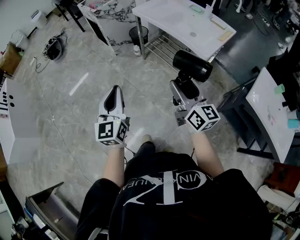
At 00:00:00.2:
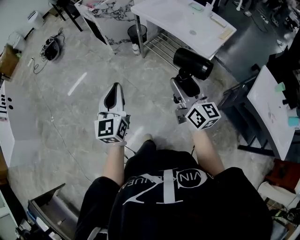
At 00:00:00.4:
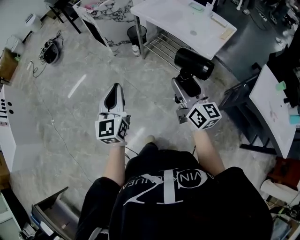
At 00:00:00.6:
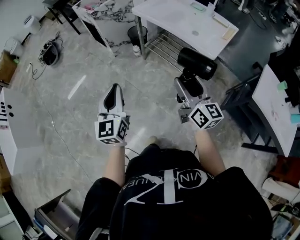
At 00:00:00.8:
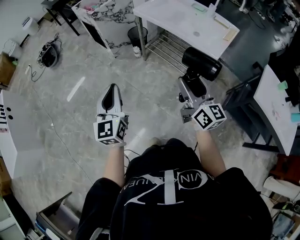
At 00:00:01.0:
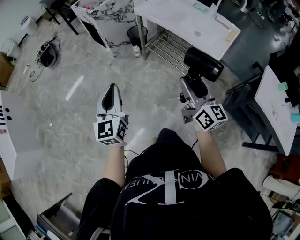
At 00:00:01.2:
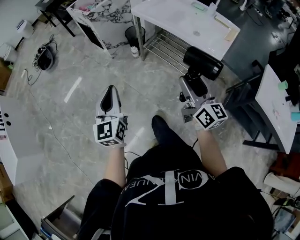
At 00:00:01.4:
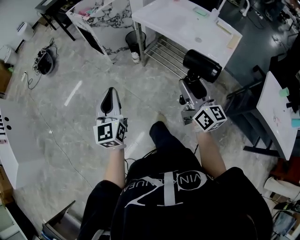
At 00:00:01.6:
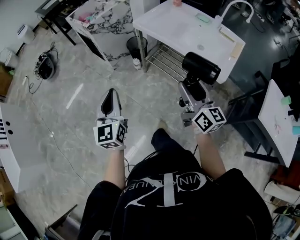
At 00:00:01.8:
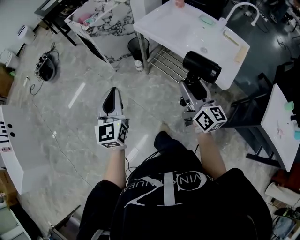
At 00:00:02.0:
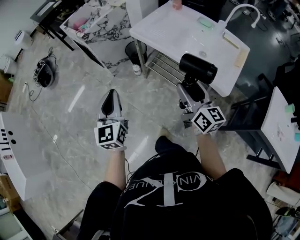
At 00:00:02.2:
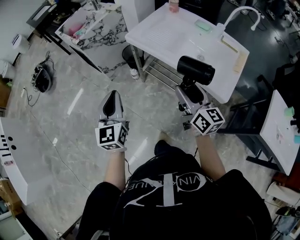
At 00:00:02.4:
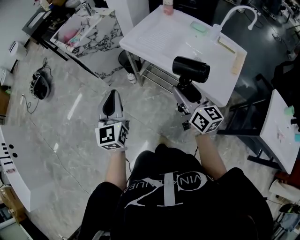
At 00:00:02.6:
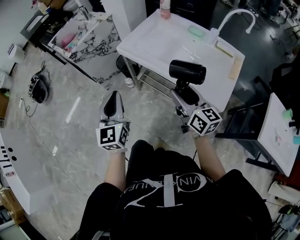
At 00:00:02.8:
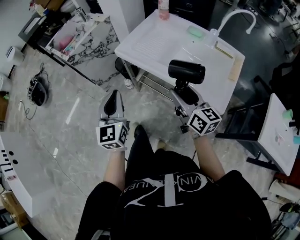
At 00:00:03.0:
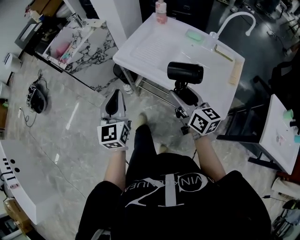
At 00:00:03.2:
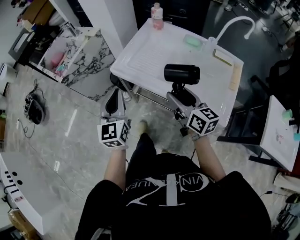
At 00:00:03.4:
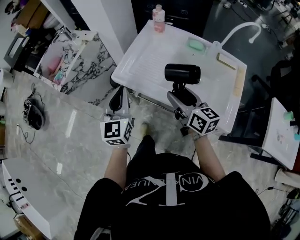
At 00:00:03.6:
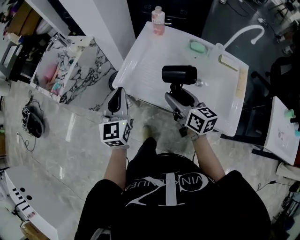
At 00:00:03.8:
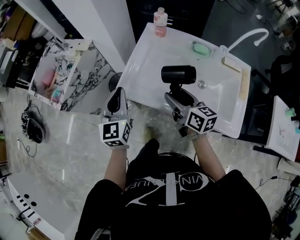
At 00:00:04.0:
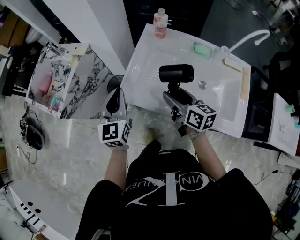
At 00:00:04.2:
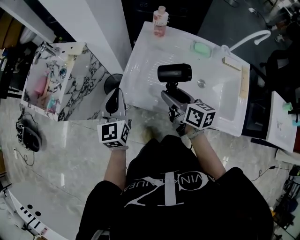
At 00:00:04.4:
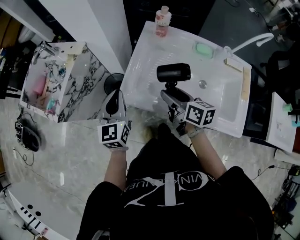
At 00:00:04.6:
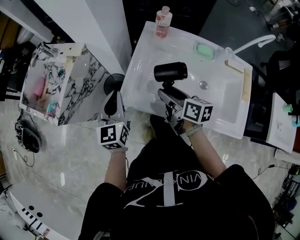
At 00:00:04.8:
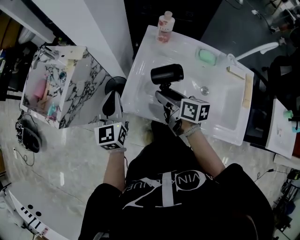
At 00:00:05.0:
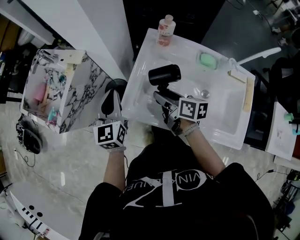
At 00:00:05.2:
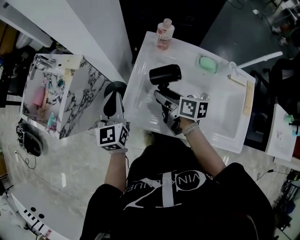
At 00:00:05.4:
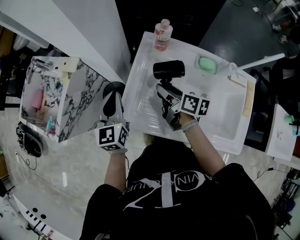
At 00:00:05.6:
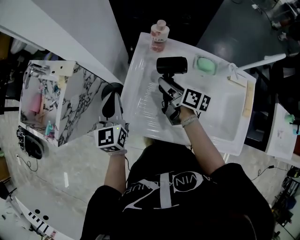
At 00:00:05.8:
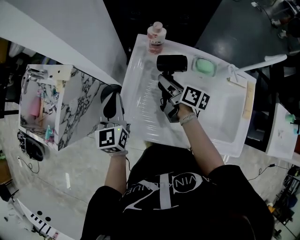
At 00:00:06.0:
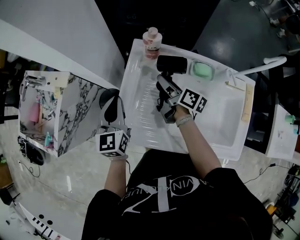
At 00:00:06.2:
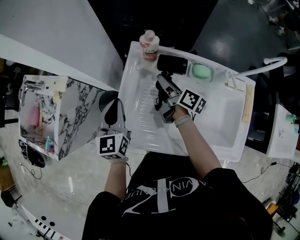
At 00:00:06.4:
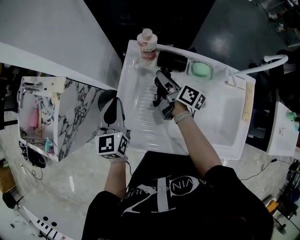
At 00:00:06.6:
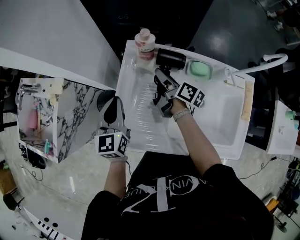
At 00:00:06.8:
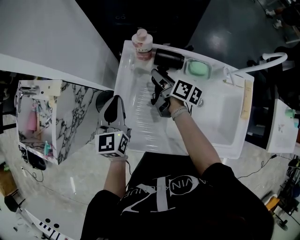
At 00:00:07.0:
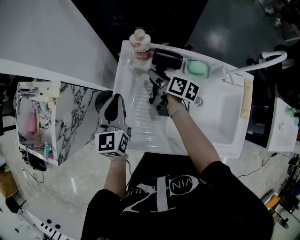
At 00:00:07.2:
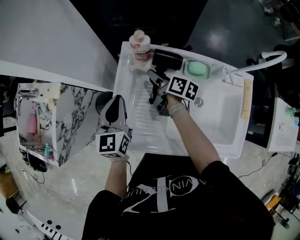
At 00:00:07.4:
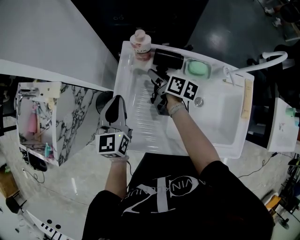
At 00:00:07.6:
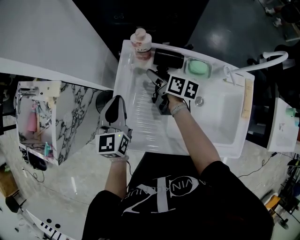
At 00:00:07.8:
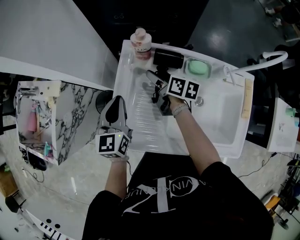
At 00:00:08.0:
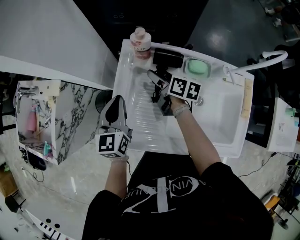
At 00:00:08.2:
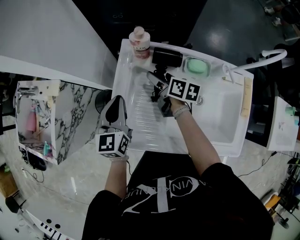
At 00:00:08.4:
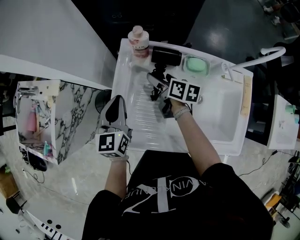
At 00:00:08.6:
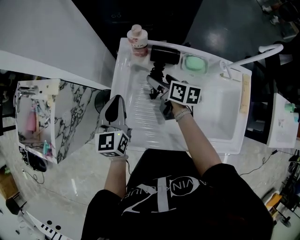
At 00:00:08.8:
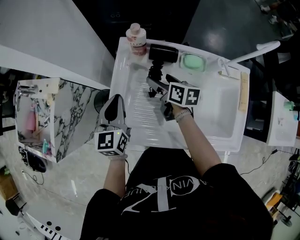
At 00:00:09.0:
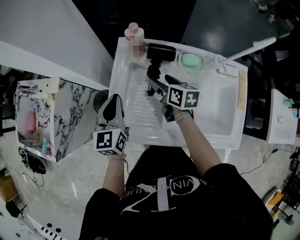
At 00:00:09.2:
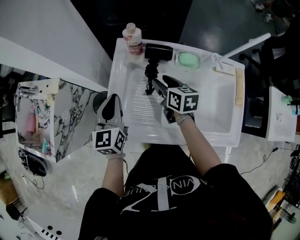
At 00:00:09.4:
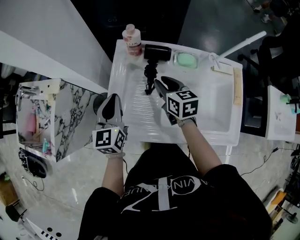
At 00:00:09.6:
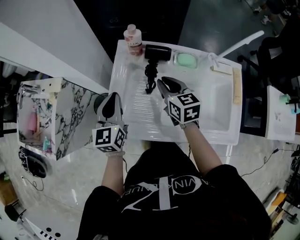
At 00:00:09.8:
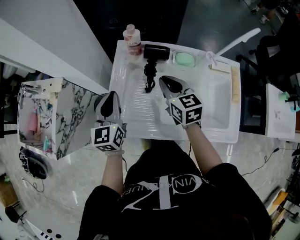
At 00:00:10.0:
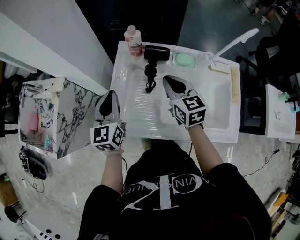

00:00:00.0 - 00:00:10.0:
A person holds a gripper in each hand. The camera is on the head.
00:00:00.0 - 00:00:01.4: The left gripper goes roughly 20 cm forward and to the left, while the right gripper moves forward, some 15 cm.
00:00:01.4 - 00:00:02.8: The right gripper moves forward, about 25 cm. Meanwhile the left gripper shifts approximately 35 cm forward and to the right.
00:00:02.8 - 00:00:04.2: The grippers both shift forward by about 30 cm. The right gripper rotates approximately 20 degrees.
00:00:04.2 - 00:00:05.8: The left gripper is displaced forward and to the right by roughly 15 cm; the right gripper is displaced forward by approximately 20 cm, and swivels approximately 20 degrees.
00:00:05.8 - 00:00:07.2: The left gripper goes approximately 5 cm to the right. Meanwhile the right gripper moves forward, approximately 5 cm.
00:00:07.2 - 00:00:08.6: The grippers make only small movements.
00:00:08.6 - 00:00:10.0: The left gripper shifts by roughly 5 cm, while the right gripper goes roughly 15 cm upward and backward, rotates about 40 degrees, and closes its fingers.

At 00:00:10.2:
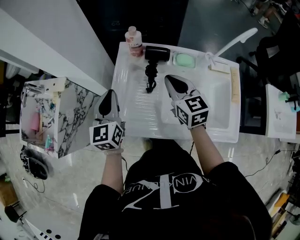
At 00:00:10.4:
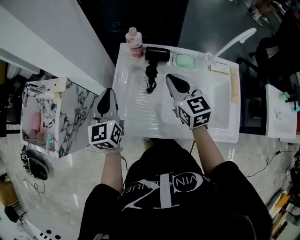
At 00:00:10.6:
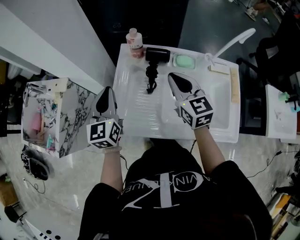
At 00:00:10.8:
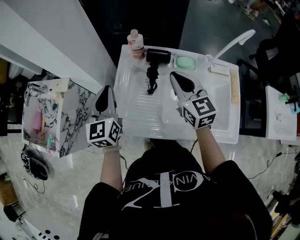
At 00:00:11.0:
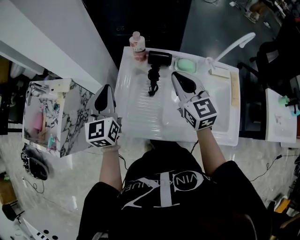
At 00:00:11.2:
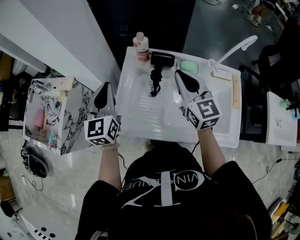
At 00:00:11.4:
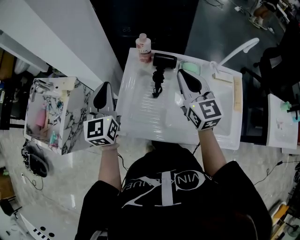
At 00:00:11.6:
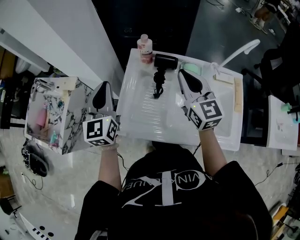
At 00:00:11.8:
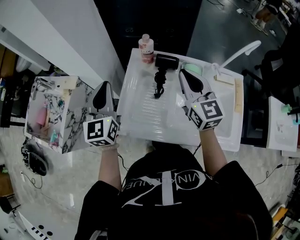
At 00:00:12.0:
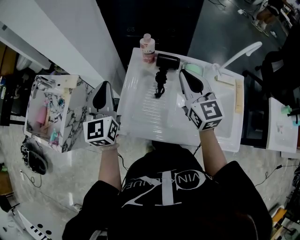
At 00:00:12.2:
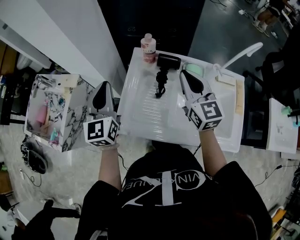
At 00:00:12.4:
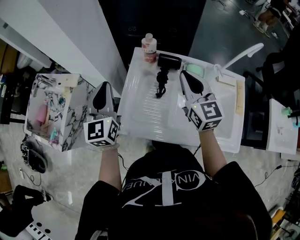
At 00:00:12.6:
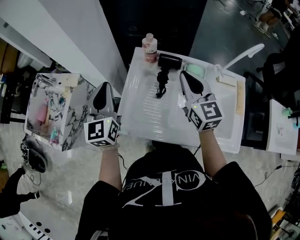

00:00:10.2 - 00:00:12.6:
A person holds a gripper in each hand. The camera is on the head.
00:00:10.2 - 00:00:11.4: Both grippers travel together upward, roughly 10 cm.
00:00:11.4 - 00:00:12.6: The grippers stay close to where they were, moving slightly.

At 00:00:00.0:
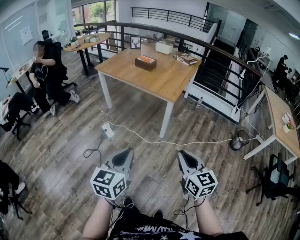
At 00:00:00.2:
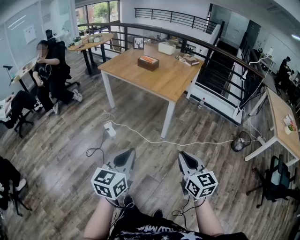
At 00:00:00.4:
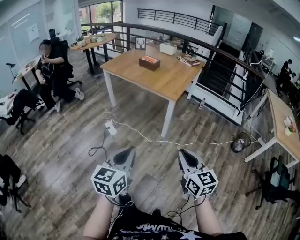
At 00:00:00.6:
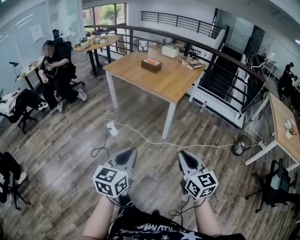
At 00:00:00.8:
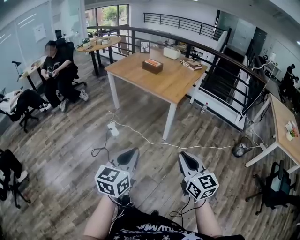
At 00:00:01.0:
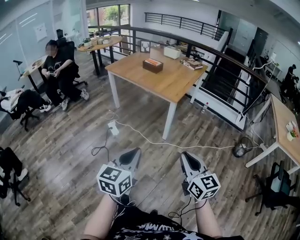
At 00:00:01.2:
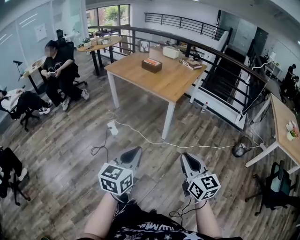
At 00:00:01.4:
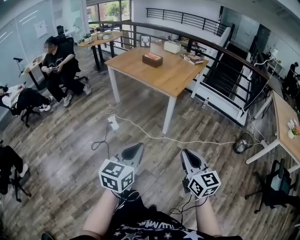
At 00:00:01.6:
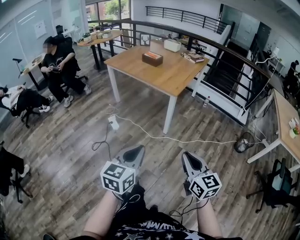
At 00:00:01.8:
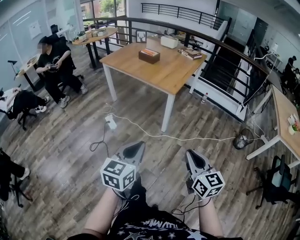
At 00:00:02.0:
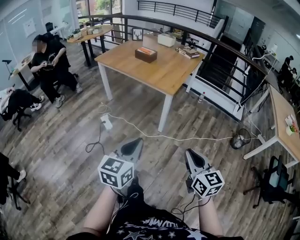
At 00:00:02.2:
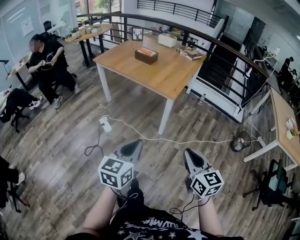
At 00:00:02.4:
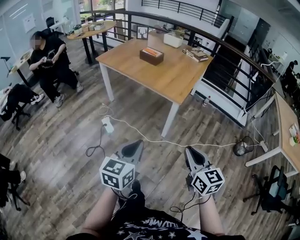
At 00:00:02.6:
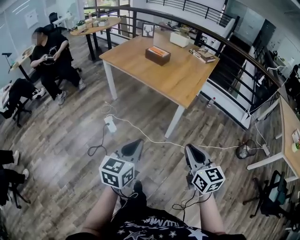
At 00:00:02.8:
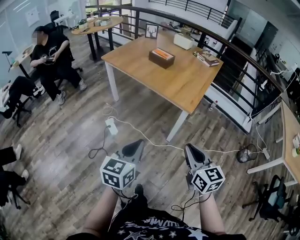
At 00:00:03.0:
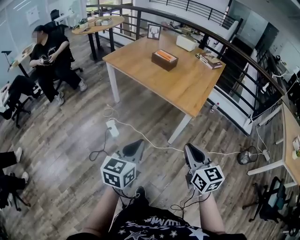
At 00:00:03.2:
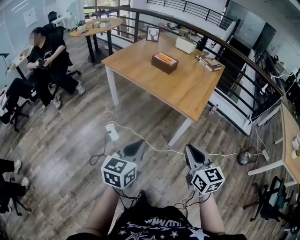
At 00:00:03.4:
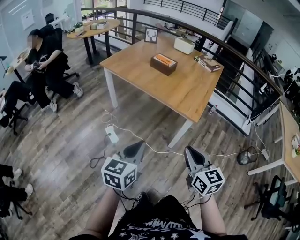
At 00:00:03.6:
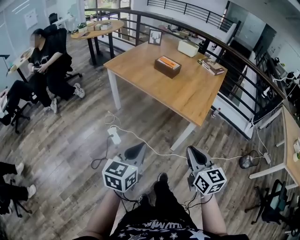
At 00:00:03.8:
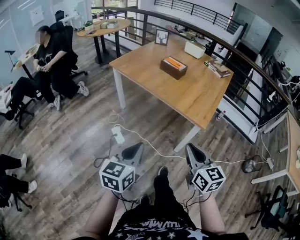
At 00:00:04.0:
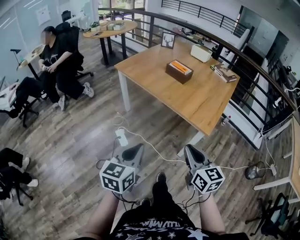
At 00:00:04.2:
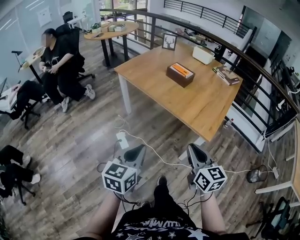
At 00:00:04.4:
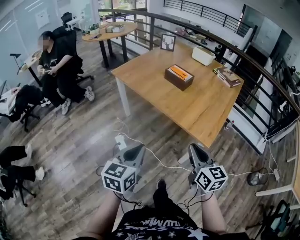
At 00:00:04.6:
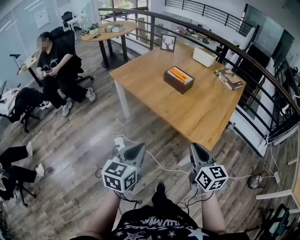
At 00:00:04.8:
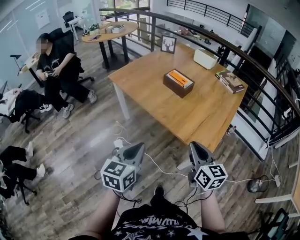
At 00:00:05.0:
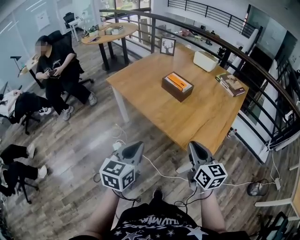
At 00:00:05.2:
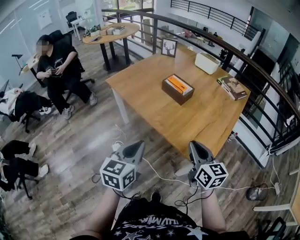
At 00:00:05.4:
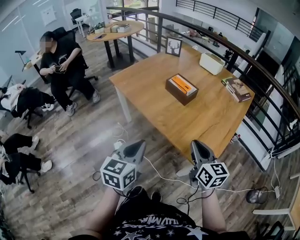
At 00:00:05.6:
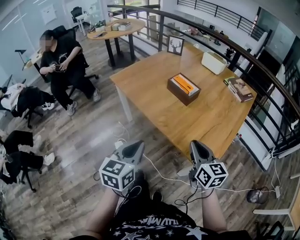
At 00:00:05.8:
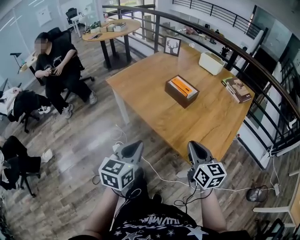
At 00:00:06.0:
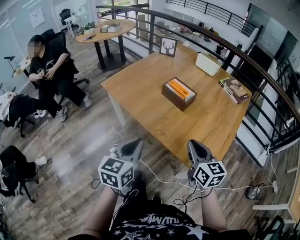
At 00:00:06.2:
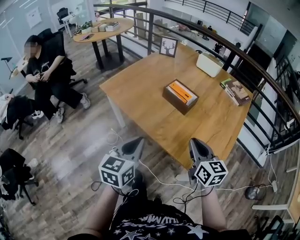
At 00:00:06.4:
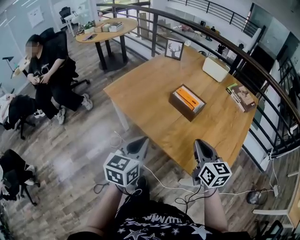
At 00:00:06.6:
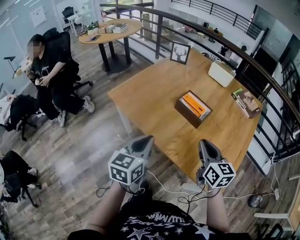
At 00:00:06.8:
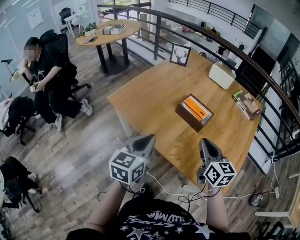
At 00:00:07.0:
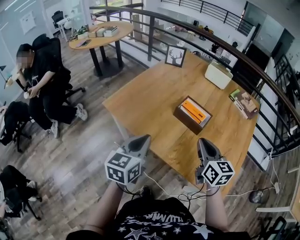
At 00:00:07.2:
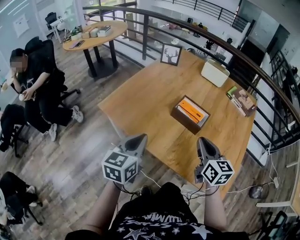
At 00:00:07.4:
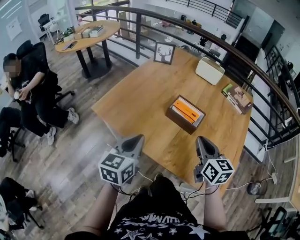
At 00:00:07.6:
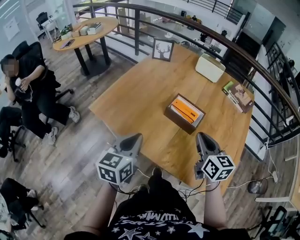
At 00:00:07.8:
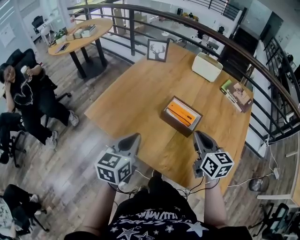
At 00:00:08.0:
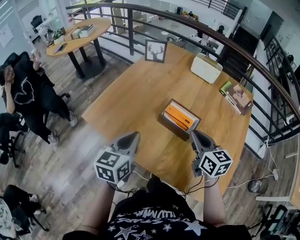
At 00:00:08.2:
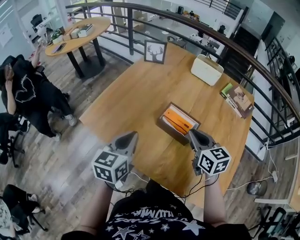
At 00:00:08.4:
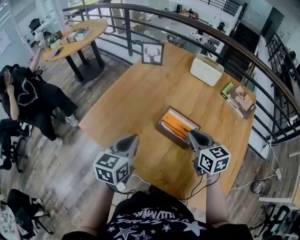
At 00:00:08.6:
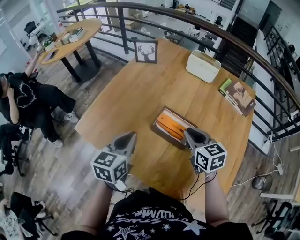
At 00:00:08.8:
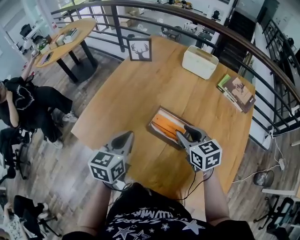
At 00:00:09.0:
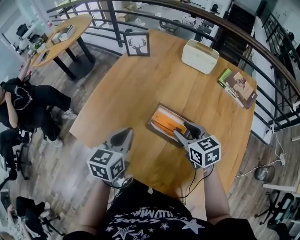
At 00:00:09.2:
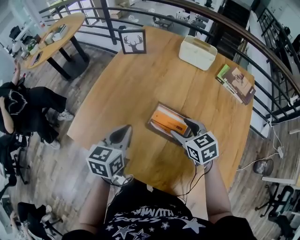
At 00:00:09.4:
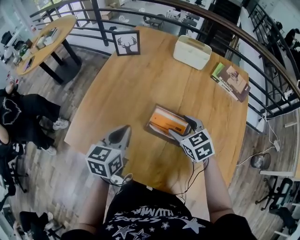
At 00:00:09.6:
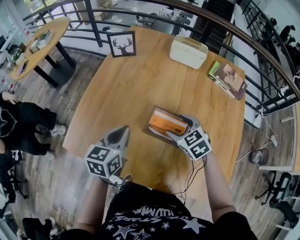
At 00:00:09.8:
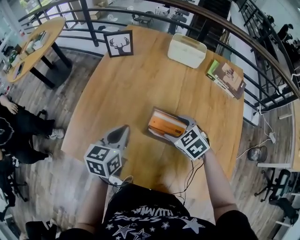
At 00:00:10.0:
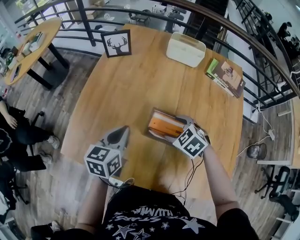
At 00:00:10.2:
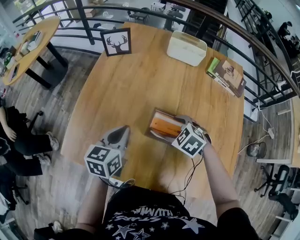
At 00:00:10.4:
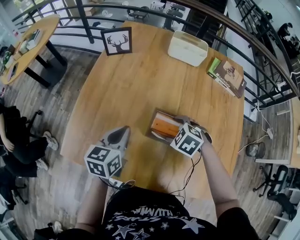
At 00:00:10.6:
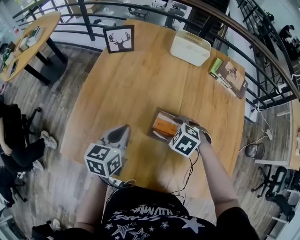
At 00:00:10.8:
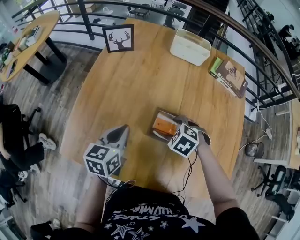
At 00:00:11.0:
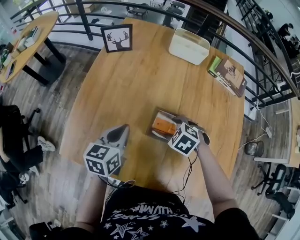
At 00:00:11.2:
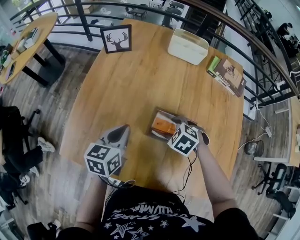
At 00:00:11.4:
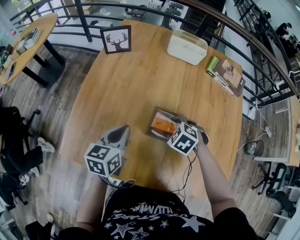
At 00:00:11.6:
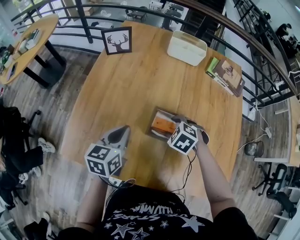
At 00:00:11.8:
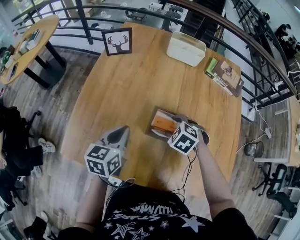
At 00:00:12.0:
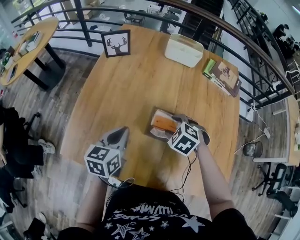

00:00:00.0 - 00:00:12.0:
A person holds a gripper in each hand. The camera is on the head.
00:00:00.0 - 00:00:01.6: The grippers both shift to the right and backward by approximately 10 cm.
00:00:01.6 - 00:00:03.0: The two grippers go roughly 40 cm forward and to the left.
00:00:03.0 - 00:00:04.4: The two grippers go about 20 cm forward.
00:00:04.4 - 00:00:06.0: The grippers both shift forward by about 25 cm.
00:00:06.0 - 00:00:07.6: The grippers both shift forward by approximately 25 cm.
00:00:07.6 - 00:00:09.0: The left gripper travels forward by roughly 20 cm. The right gripper is displaced forward and downward by about 20 cm, turns by roughly 20 degrees, and opens.
00:00:09.0 - 00:00:10.4: The left gripper heads forward and downward, covering some 10 cm. The right gripper heads downward, covering some 10 cm, angles its fingers downward, by some 40 degrees, and opens its fingers.
00:00:10.4 - 00:00:12.0: There are only small adjustments of the grippers.
